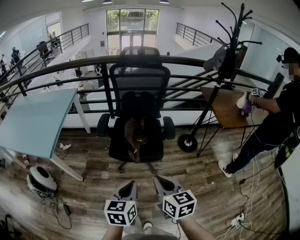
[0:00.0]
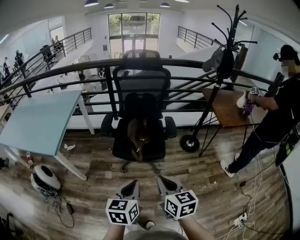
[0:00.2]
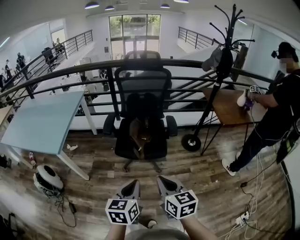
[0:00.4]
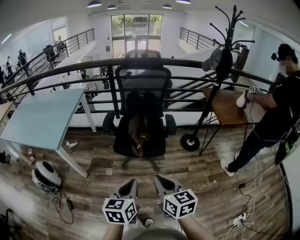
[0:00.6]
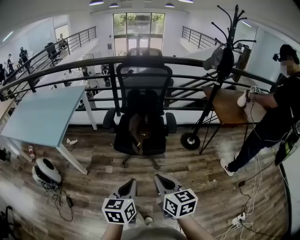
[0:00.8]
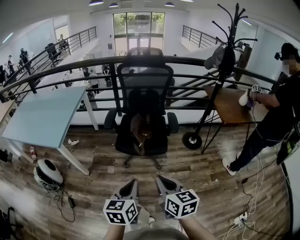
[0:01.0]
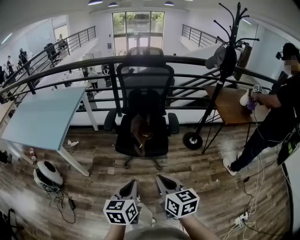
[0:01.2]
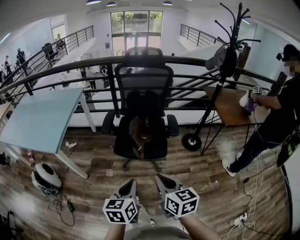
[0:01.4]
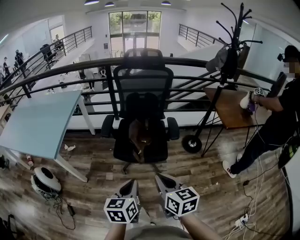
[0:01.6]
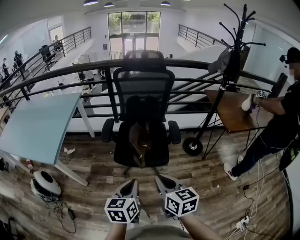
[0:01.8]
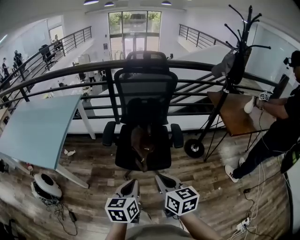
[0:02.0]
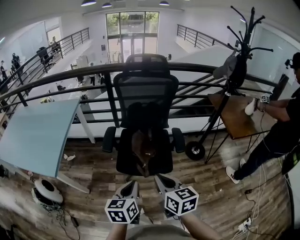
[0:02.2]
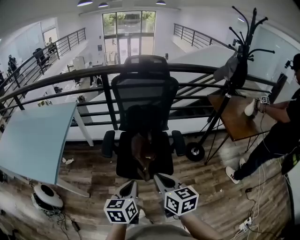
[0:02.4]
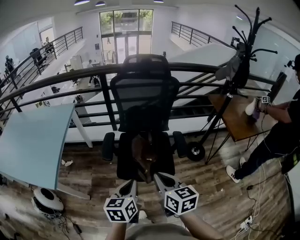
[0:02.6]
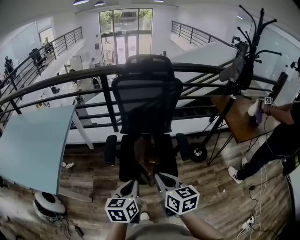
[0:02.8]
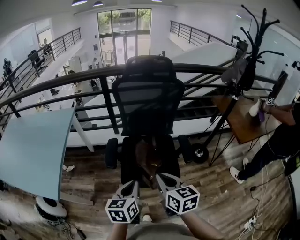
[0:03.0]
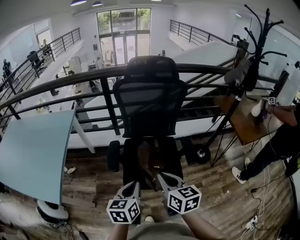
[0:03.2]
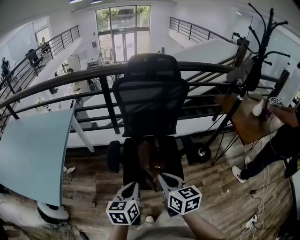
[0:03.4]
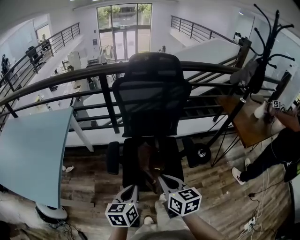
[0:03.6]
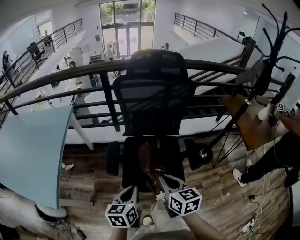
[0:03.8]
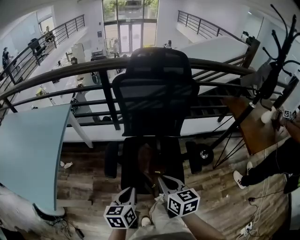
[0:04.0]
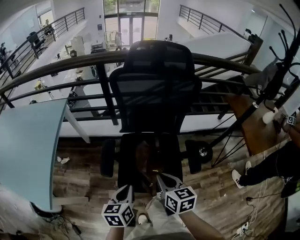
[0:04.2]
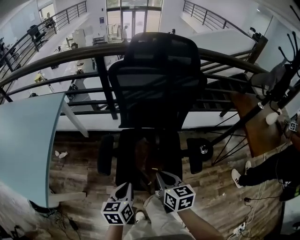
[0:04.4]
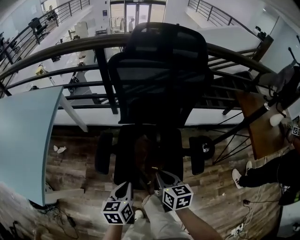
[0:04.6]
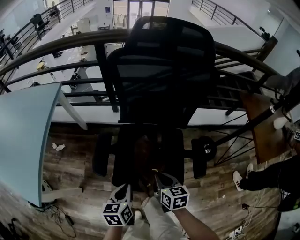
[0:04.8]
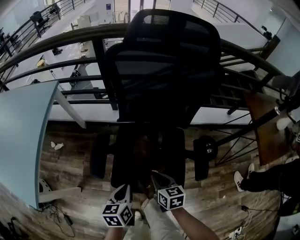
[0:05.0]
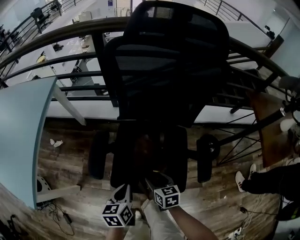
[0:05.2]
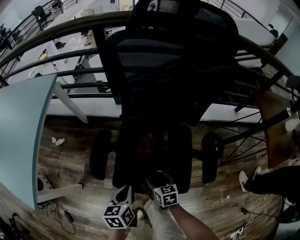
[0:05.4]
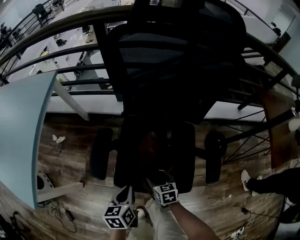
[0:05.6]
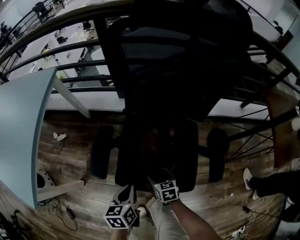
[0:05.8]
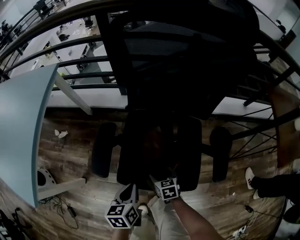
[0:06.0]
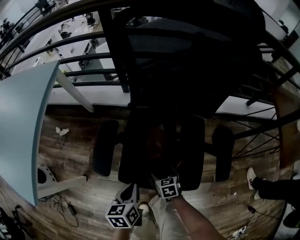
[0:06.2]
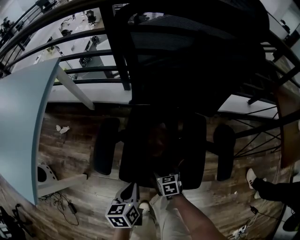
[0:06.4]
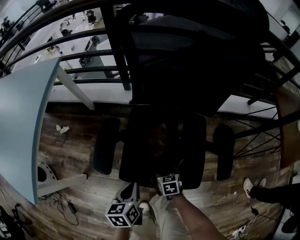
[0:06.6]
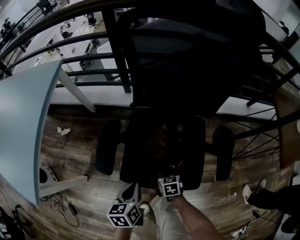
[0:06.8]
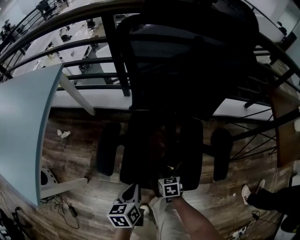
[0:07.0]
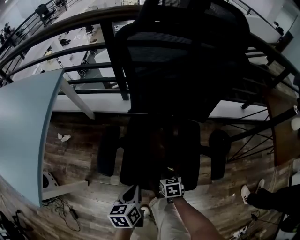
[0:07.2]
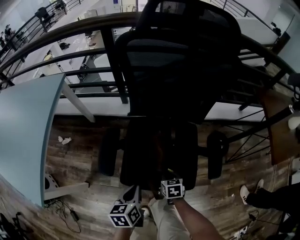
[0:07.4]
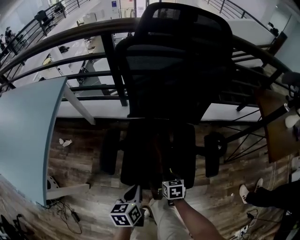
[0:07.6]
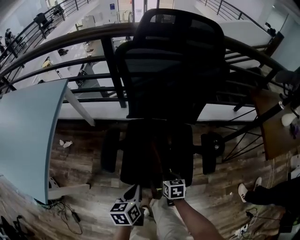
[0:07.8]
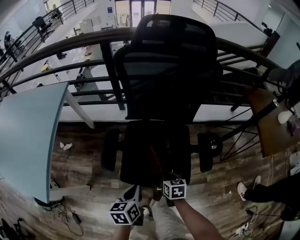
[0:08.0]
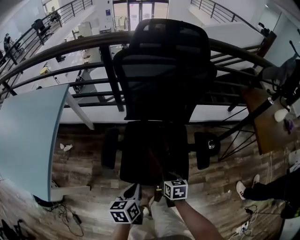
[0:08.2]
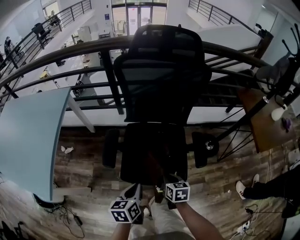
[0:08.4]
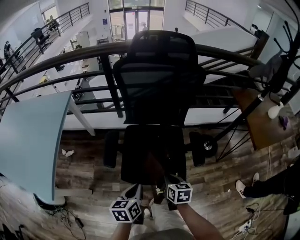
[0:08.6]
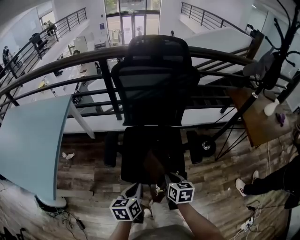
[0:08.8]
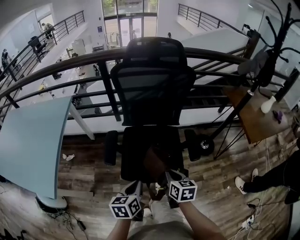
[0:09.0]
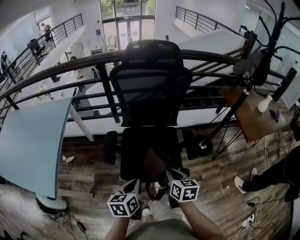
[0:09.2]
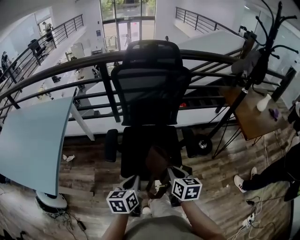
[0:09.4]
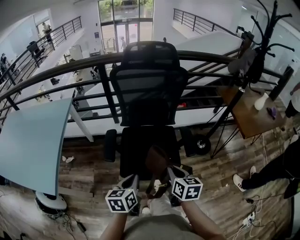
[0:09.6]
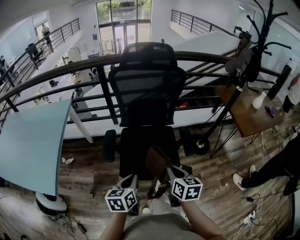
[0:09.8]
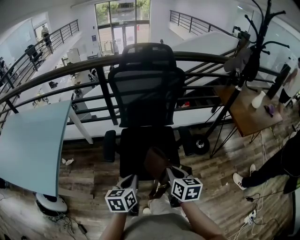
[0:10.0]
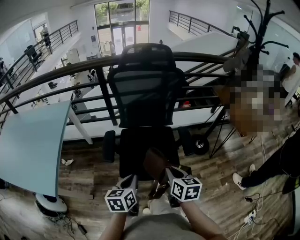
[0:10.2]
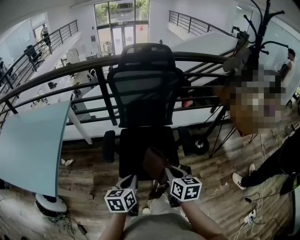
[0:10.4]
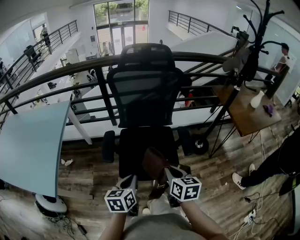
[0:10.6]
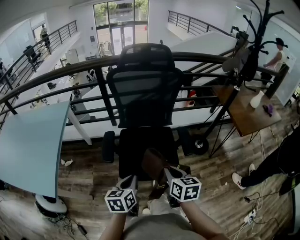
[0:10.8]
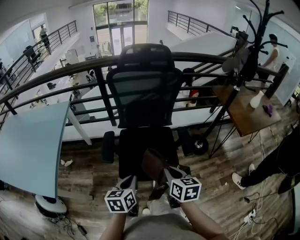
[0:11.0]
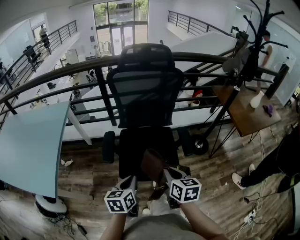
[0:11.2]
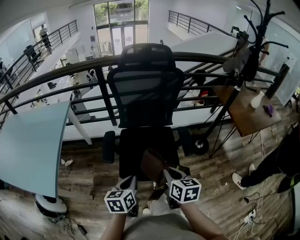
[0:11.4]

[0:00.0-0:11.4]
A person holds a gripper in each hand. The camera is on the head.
0:01.4 to 0:02.8: The grippers both shift forward by some 25 cm.
0:02.8 to 0:04.2: The two grippers go approximately 20 cm forward and downward.
0:04.2 to 0:05.6: The right gripper travels downward by approximately 35 cm, turns by roughly 20 degrees, and opens up, while the left gripper travels downward by roughly 20 cm.
0:05.6 to 0:07.2: The right gripper closes up.
0:07.2 to 0:08.6: The left gripper goes approximately 15 cm upward and backward, while the right gripper heads upward and backward, covering roughly 25 cm.
0:08.6 to 0:10.0: The right gripper is displaced upward and backward by roughly 15 cm. Meanwhile the left gripper travels upward by roughly 5 cm.
0:10.0 to 0:11.4: There are only small adjustments of the grippers.

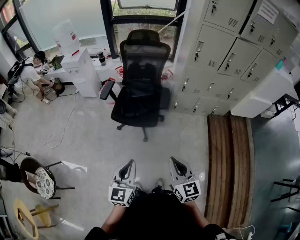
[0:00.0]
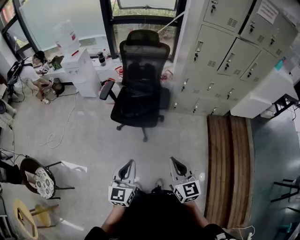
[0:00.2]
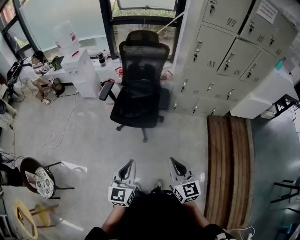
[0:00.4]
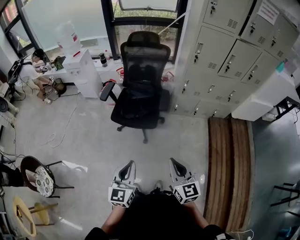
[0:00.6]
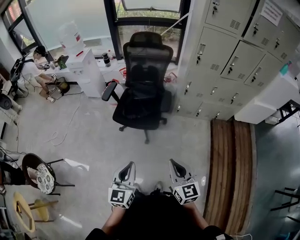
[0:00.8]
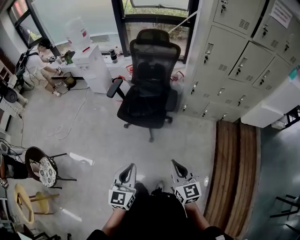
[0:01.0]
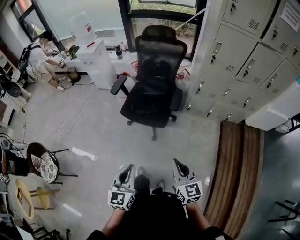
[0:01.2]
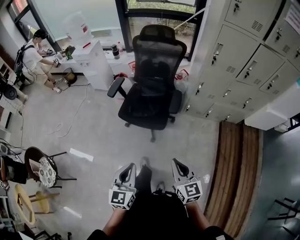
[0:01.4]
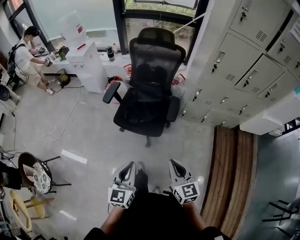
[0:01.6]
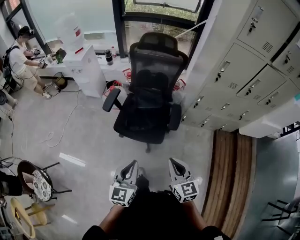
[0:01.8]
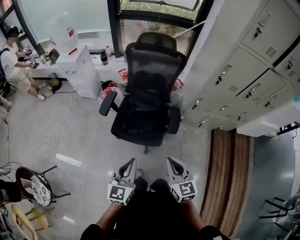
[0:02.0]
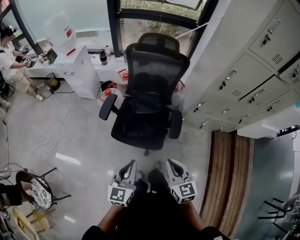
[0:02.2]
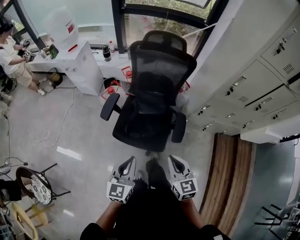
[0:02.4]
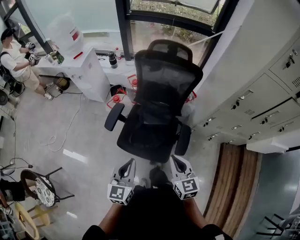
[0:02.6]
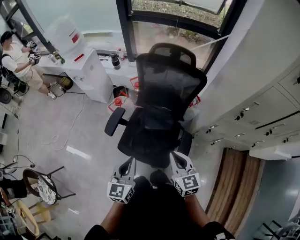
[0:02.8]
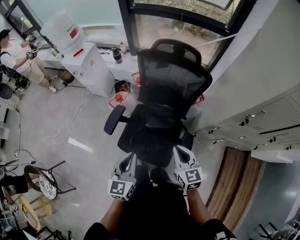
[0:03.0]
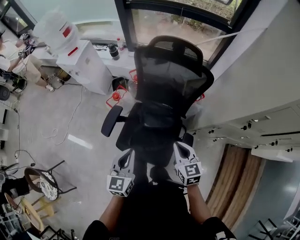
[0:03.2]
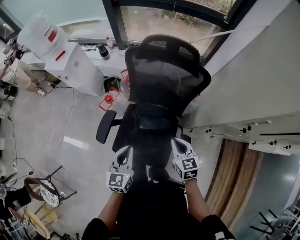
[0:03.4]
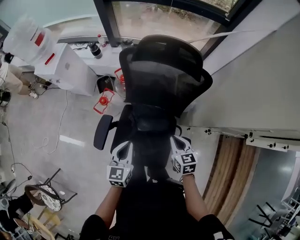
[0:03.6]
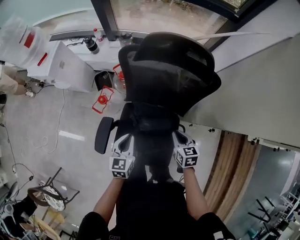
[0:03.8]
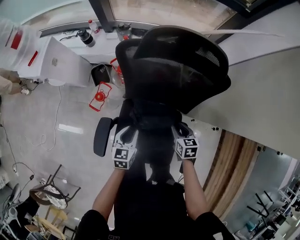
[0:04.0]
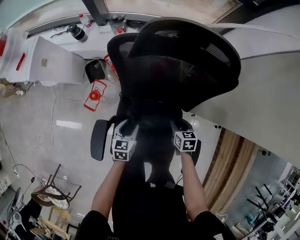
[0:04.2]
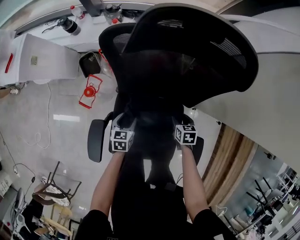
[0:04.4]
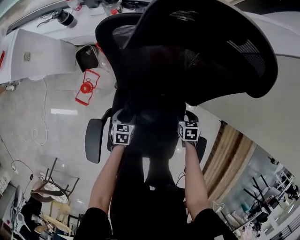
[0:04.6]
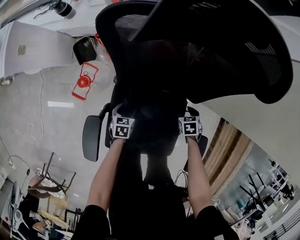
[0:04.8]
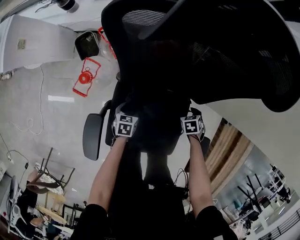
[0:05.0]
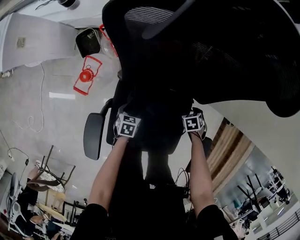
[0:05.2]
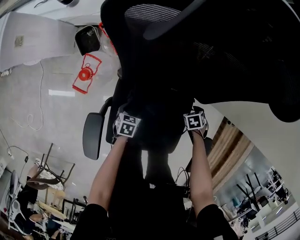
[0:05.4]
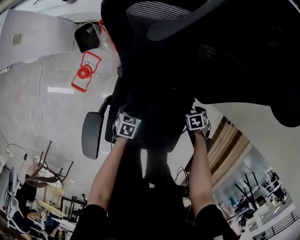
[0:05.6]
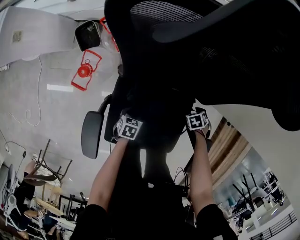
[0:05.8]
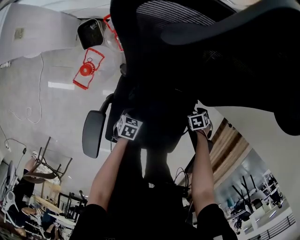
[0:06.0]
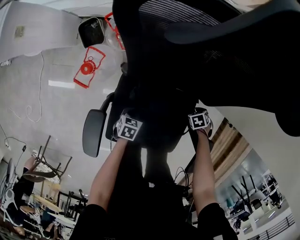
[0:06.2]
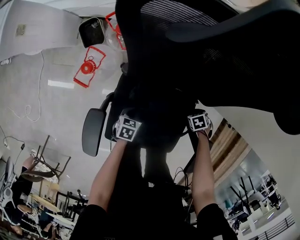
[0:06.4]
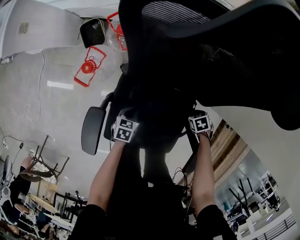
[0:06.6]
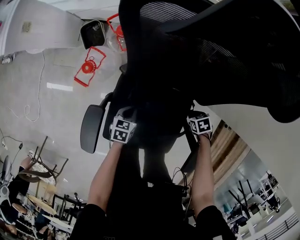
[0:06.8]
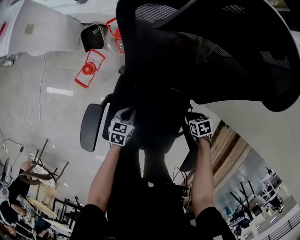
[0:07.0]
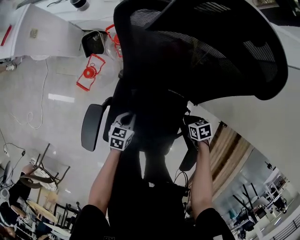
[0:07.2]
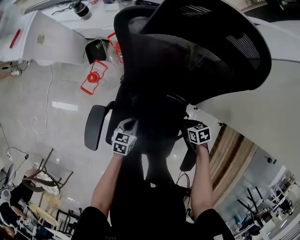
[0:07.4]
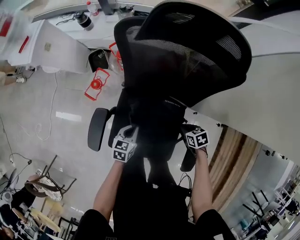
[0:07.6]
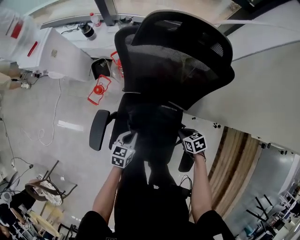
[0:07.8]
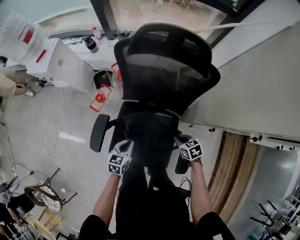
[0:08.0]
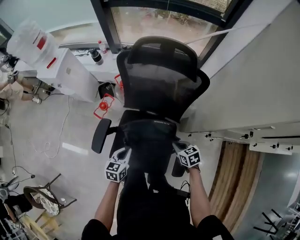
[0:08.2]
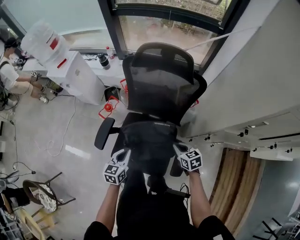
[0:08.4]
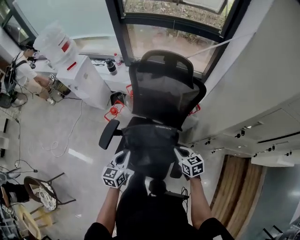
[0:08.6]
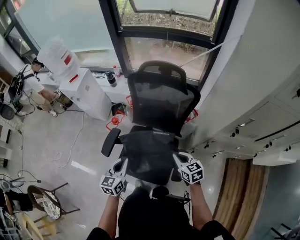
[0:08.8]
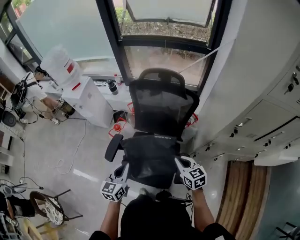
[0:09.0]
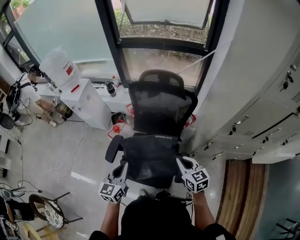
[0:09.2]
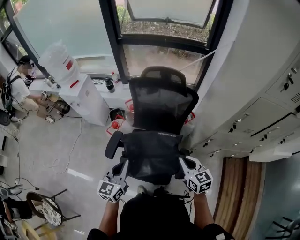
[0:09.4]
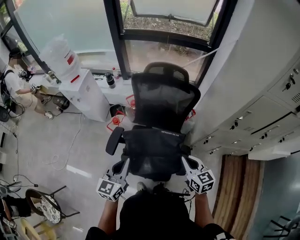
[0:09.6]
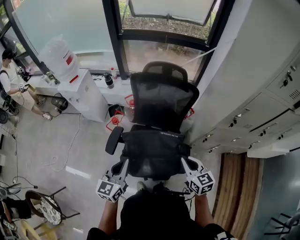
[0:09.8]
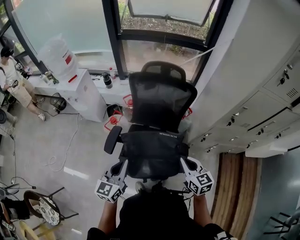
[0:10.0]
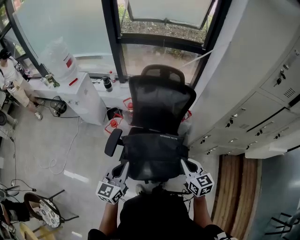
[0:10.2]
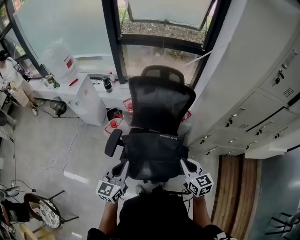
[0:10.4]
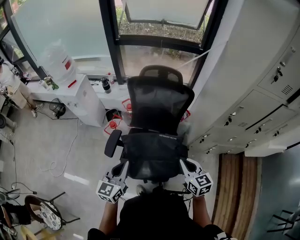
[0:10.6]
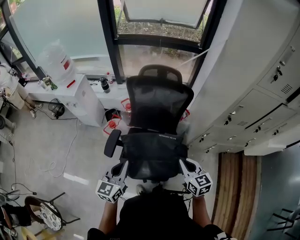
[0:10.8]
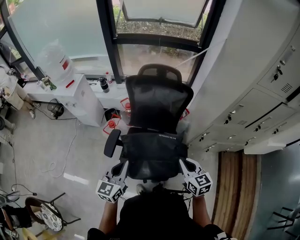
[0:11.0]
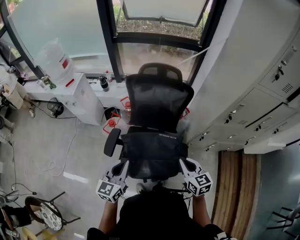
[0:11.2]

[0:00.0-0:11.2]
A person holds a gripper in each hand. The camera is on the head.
0:00.0 to 0:01.6: The right gripper moves forward and downward, approximately 15 cm. The left gripper goes roughly 10 cm forward.
0:01.6 to 0:03.2: The two grippers travel together, forward, approximately 40 cm.
0:03.2 to 0:04.8: Both grippers travel together downward, approximately 40 cm. The left gripper tilts its fingers roughly 40 degrees downward, and opens up; the right gripper tips its fingers downward by roughly 50 degrees, and opens its fingers.
0:04.8 to 0:06.4: The left gripper changes place by about 5 cm, and closes. Meanwhile the right gripper heads downward, covering some 5 cm, turns by about 20 degrees, and closes.
0:06.4 to 0:08.0: The grippers both shift upward by some 25 cm. The left gripper swivels about 30 degrees. Meanwhile the right gripper turns by approximately 40 degrees.
0:08.0 to 0:09.6: The grippers both shift upward by approximately 30 cm. The left gripper tips its fingers upward by approximately 30 degrees; the right gripper points its fingers some 30 degrees further upward.
0:09.6 to 0:11.2: The grippers move only a little.

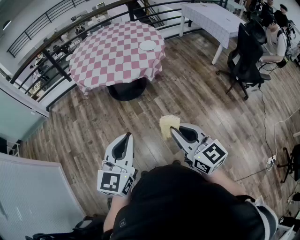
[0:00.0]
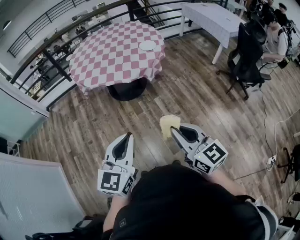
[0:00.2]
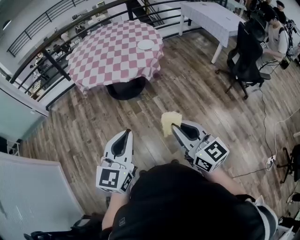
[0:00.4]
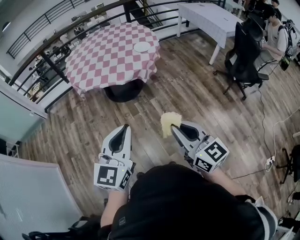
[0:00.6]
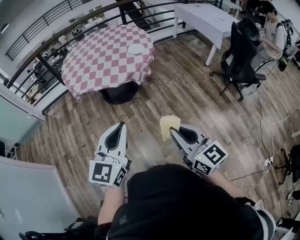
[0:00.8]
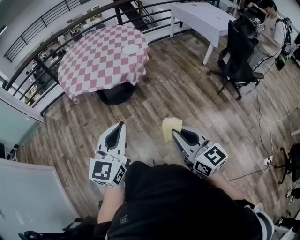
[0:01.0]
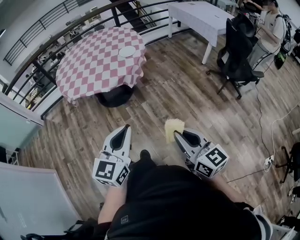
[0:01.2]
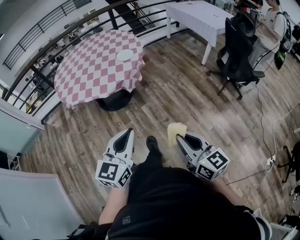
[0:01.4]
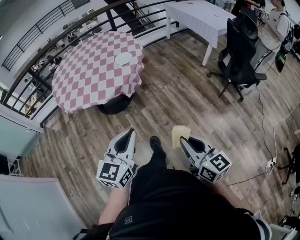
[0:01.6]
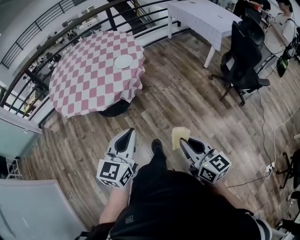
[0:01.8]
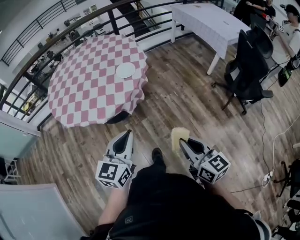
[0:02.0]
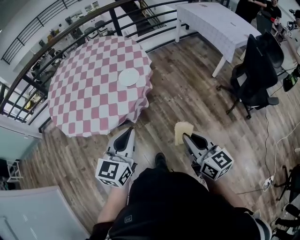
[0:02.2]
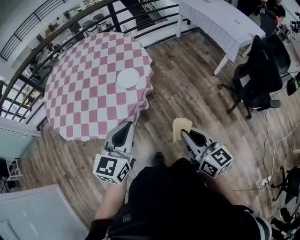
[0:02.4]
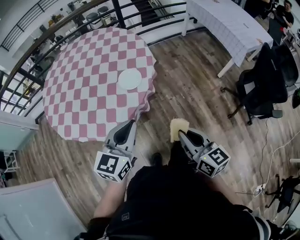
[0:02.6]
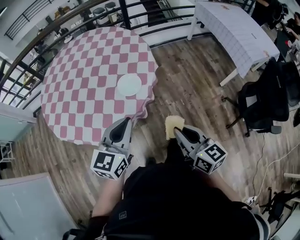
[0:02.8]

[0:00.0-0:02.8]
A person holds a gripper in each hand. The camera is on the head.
0:00.0 to 0:01.4: The right gripper travels to the right by about 20 cm. Meanwhile the left gripper travels to the right and forward by roughly 20 cm.
0:01.4 to 0:02.8: The two grippers travel together, forward, about 50 cm.
